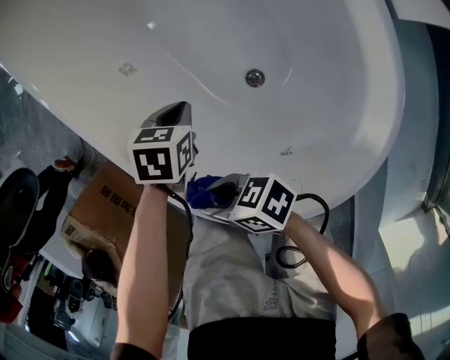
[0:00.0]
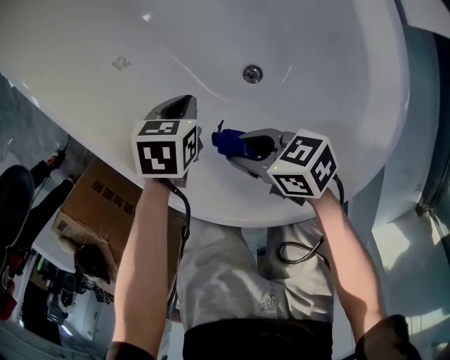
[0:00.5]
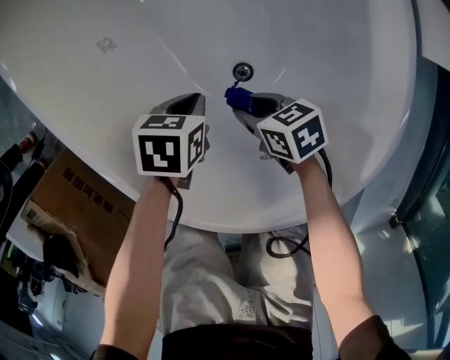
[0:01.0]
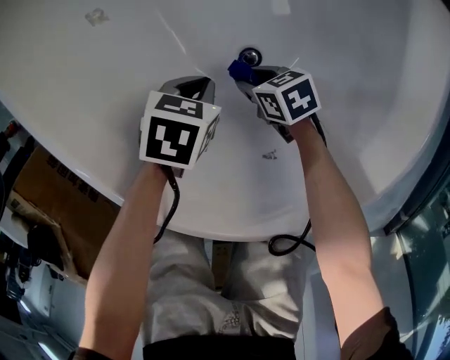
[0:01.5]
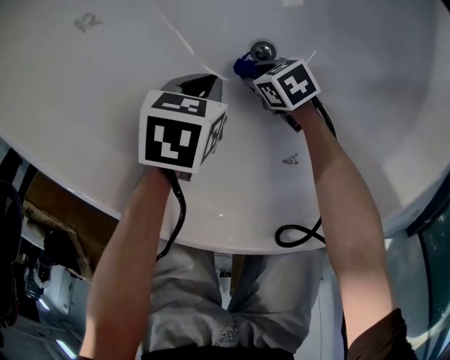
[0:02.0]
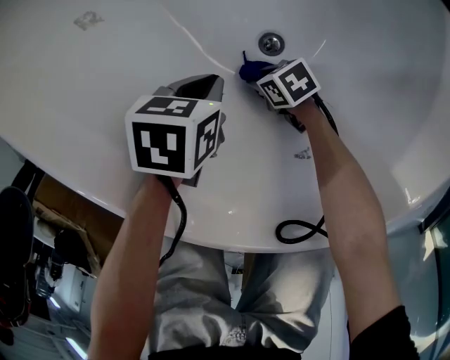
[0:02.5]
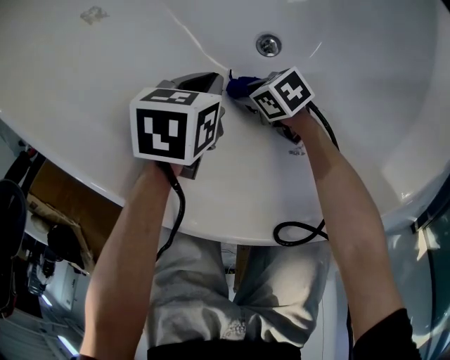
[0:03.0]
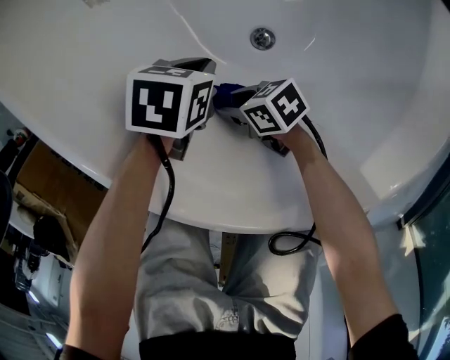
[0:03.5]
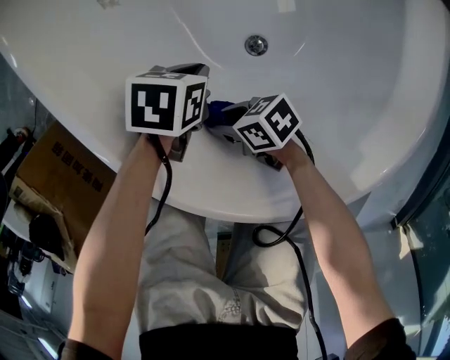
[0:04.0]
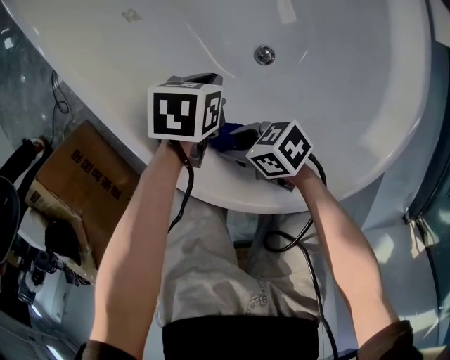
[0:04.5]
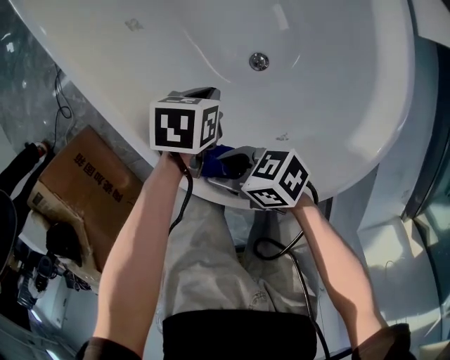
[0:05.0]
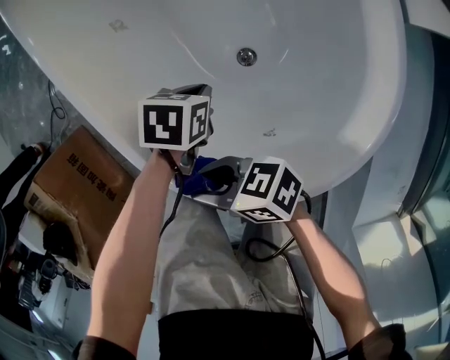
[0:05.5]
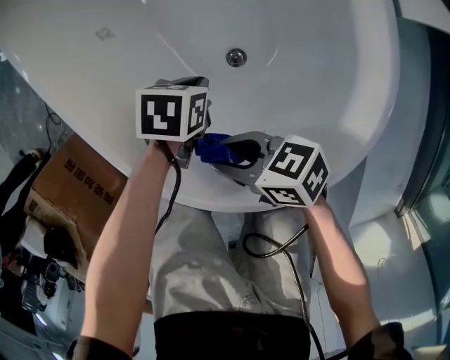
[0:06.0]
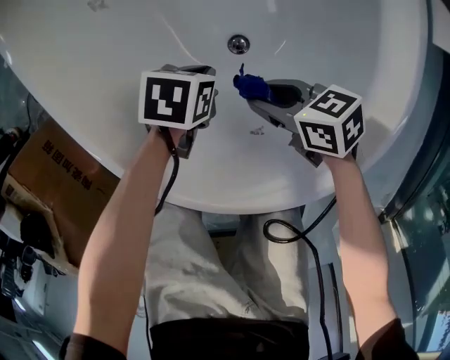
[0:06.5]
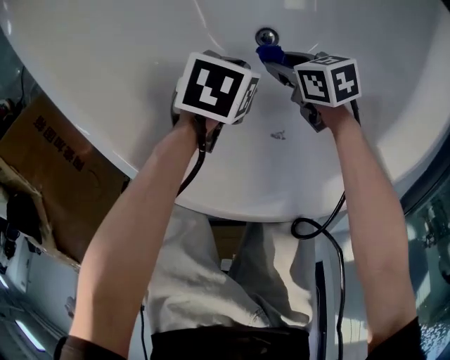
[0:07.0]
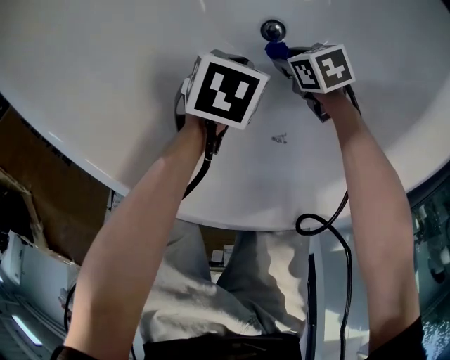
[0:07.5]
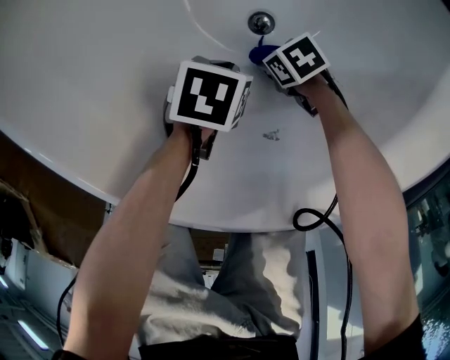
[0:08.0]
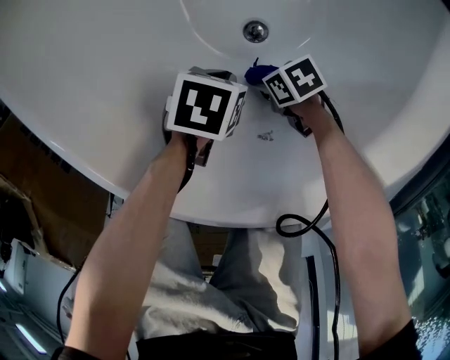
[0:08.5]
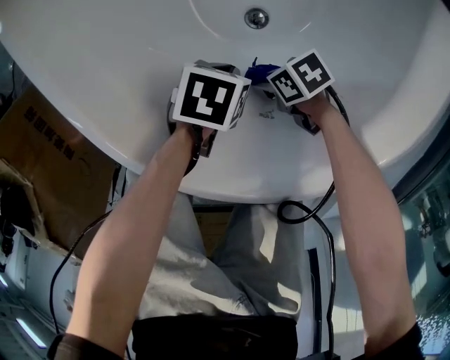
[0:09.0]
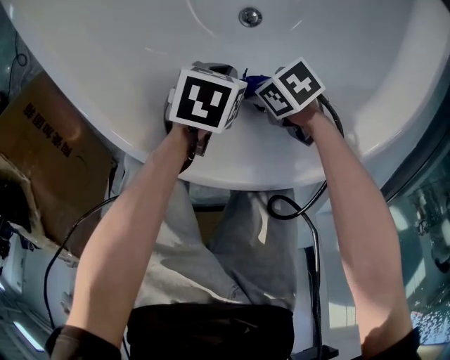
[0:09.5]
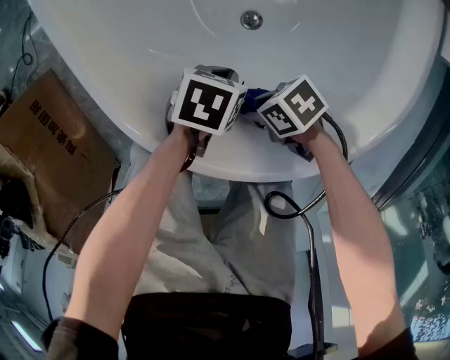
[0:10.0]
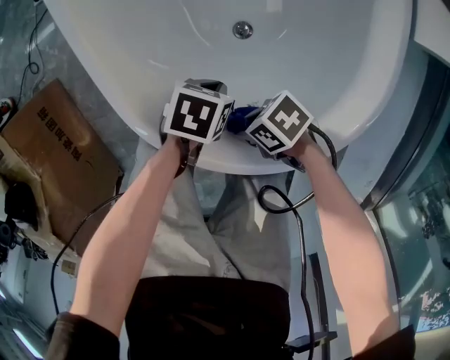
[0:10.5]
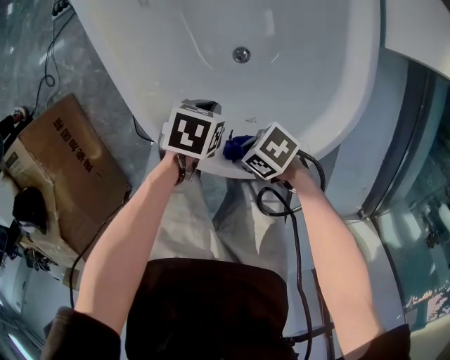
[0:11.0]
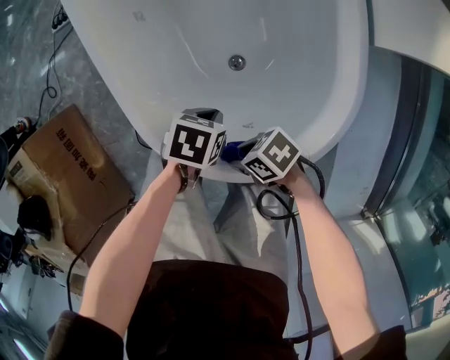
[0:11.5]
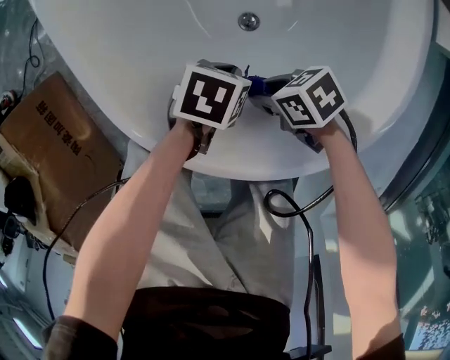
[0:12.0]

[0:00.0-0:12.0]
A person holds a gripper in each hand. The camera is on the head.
0:00.0 to 0:02.0: The left gripper heads downward, covering about 10 cm.
0:04.0 to 0:06.0: The left gripper changes place by about 5 cm.
0:06.0 to 0:08.0: The left gripper heads downward, covering approximately 10 cm.
0:08.0 to 0:10.0: The left gripper moves upward, roughly 10 cm.
0:10.0 to 0:12.0: The left gripper reaches some 10 cm upward, then returns.

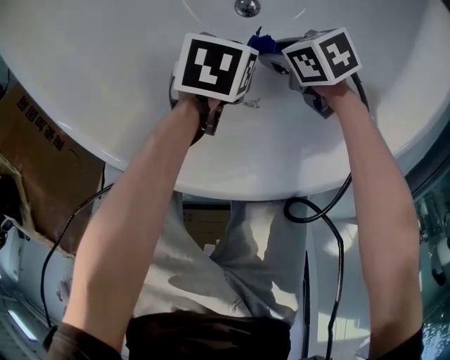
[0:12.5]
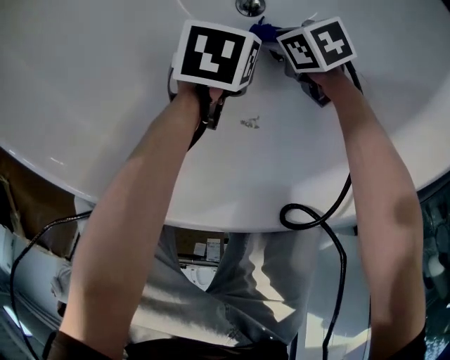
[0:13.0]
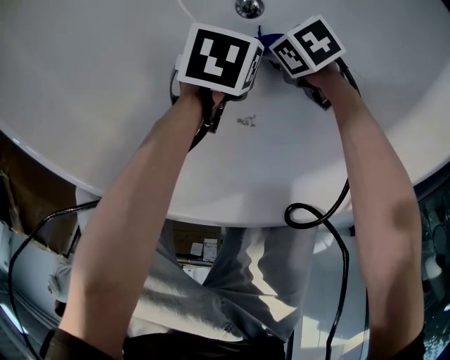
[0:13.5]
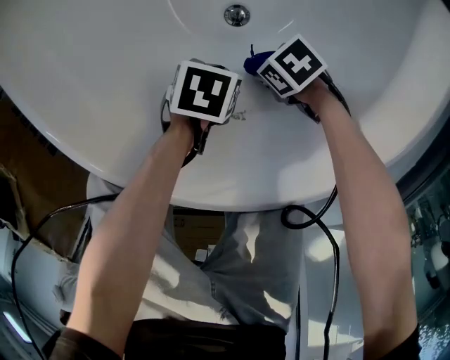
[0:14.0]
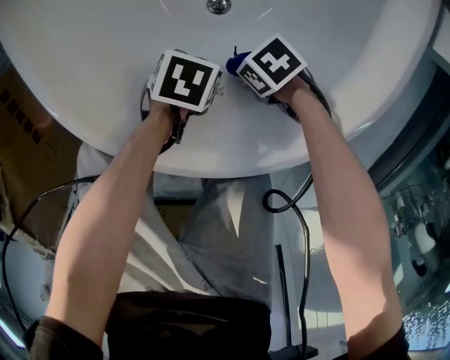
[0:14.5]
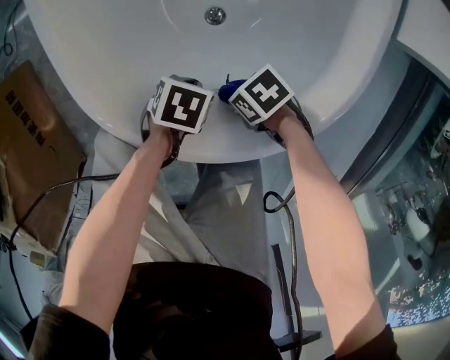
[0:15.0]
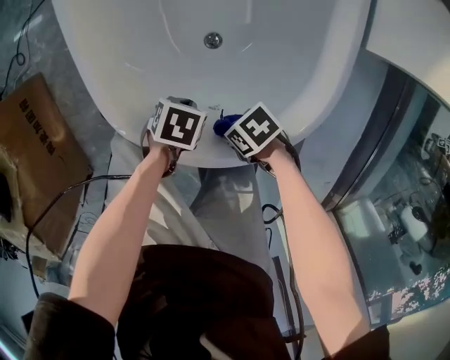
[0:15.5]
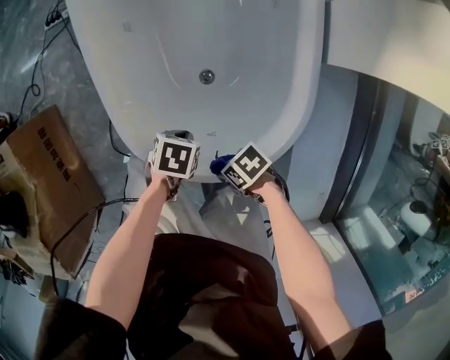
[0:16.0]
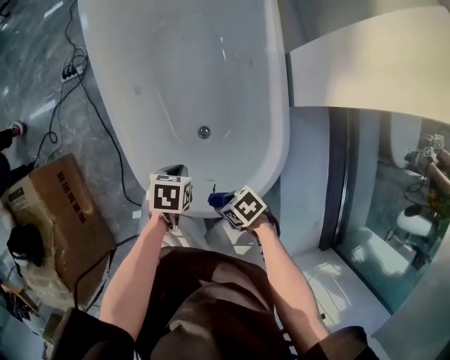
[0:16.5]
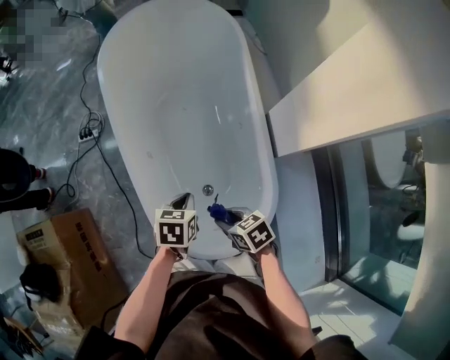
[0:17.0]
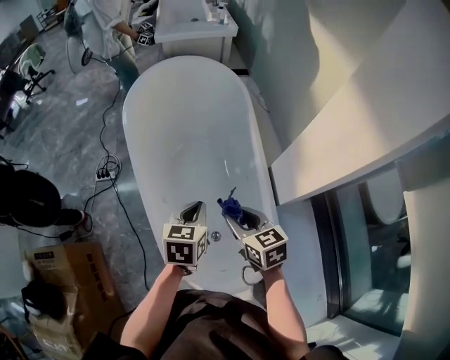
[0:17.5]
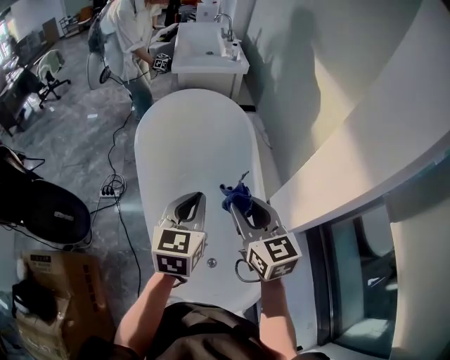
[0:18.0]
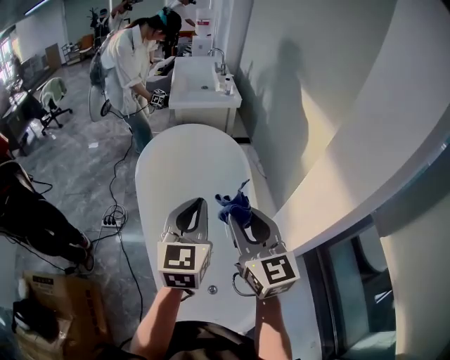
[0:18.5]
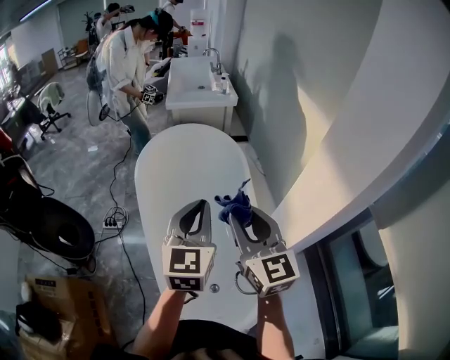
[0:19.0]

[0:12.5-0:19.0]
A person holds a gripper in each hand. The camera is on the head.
0:12.5 to 0:14.5: The left gripper moves some 10 cm downward and comes back.
0:14.5 to 0:17.0: The left gripper travels upward by about 40 cm, and swivels some 40 degrees.
0:17.0 to 0:19.0: The left gripper heads upward, covering roughly 40 cm, and points its fingers some 50 degrees further upward.

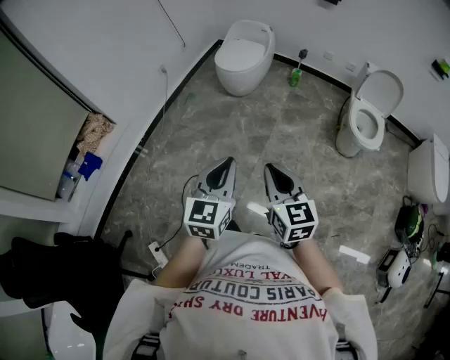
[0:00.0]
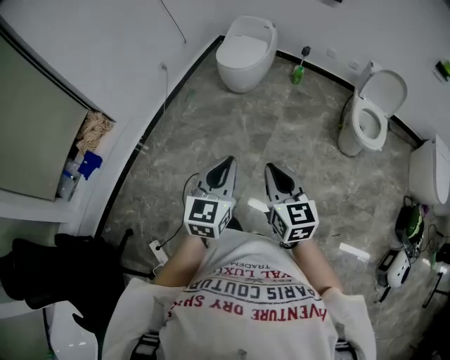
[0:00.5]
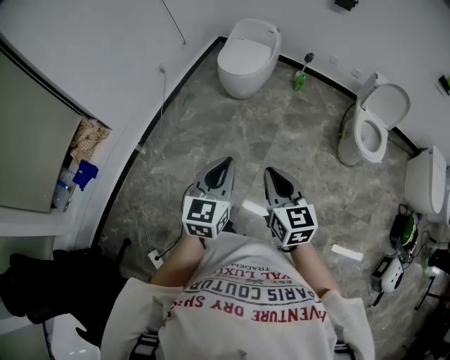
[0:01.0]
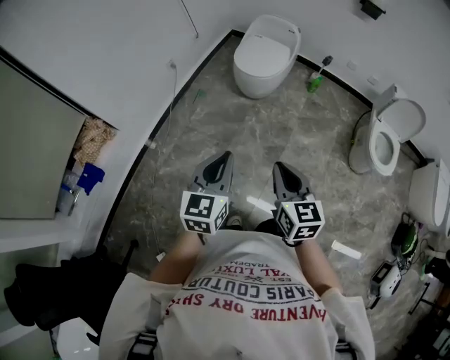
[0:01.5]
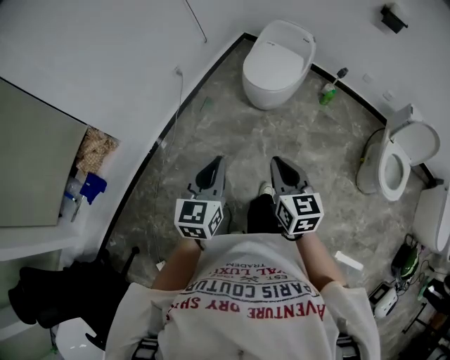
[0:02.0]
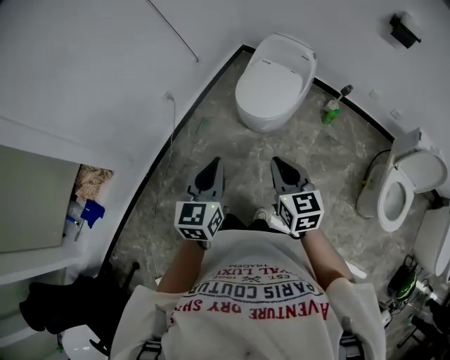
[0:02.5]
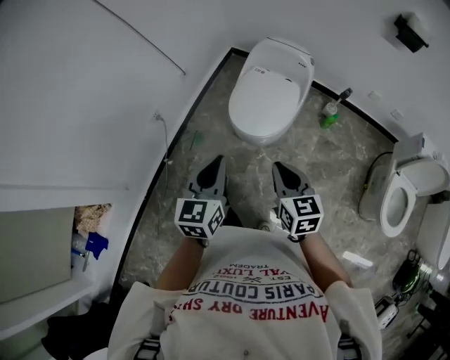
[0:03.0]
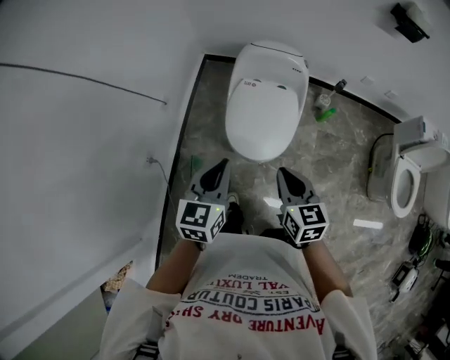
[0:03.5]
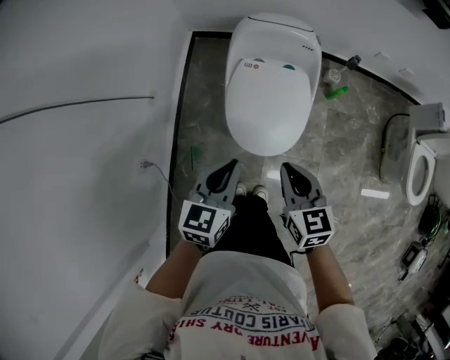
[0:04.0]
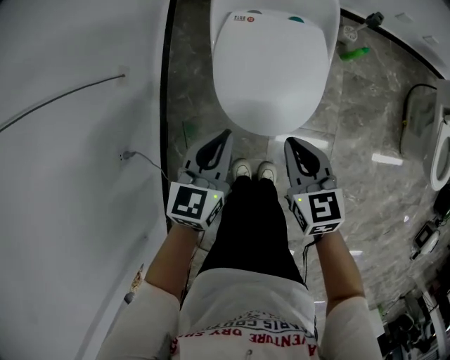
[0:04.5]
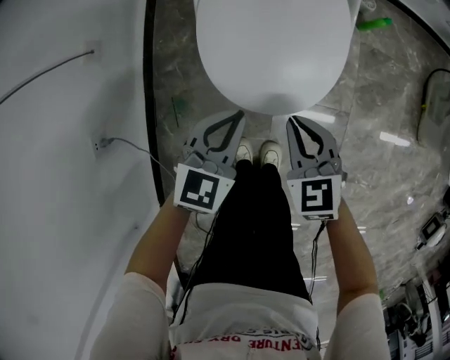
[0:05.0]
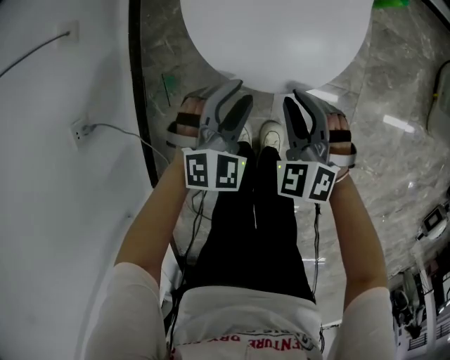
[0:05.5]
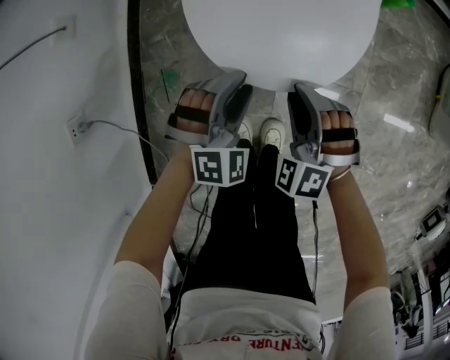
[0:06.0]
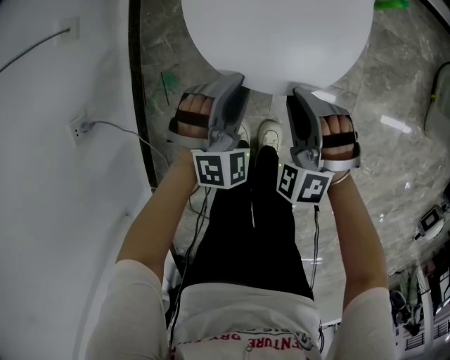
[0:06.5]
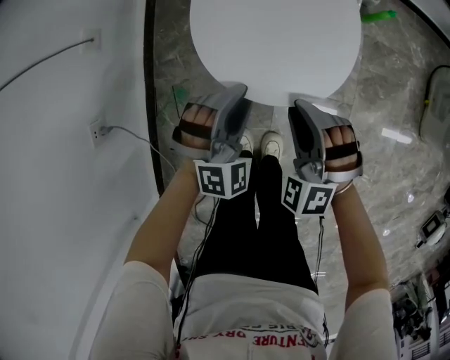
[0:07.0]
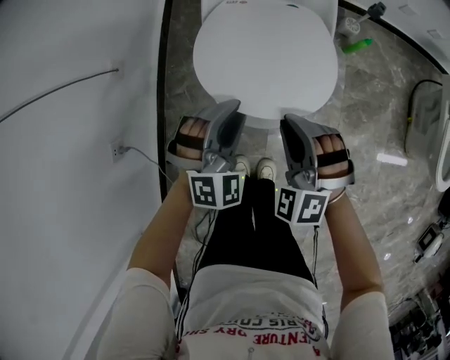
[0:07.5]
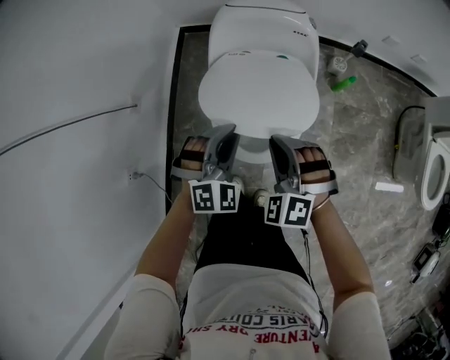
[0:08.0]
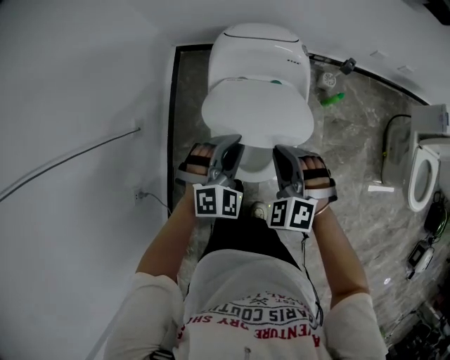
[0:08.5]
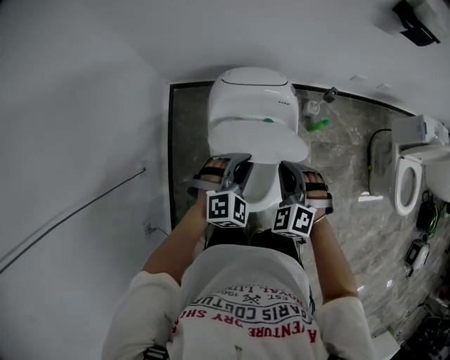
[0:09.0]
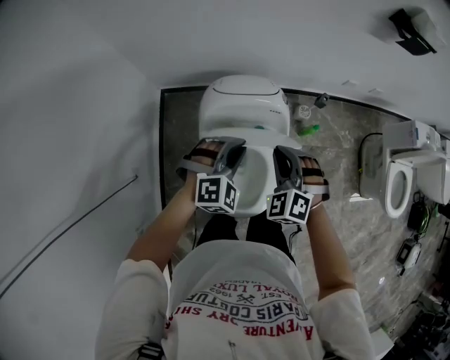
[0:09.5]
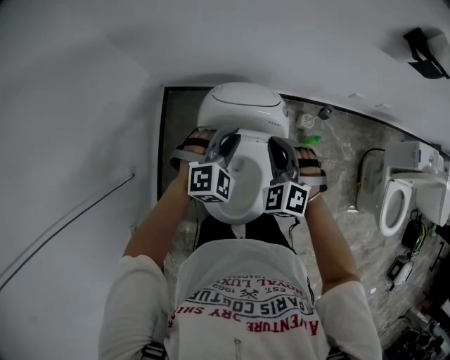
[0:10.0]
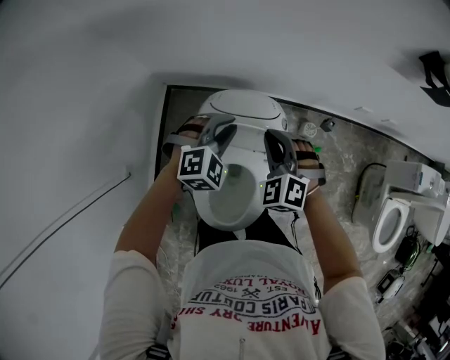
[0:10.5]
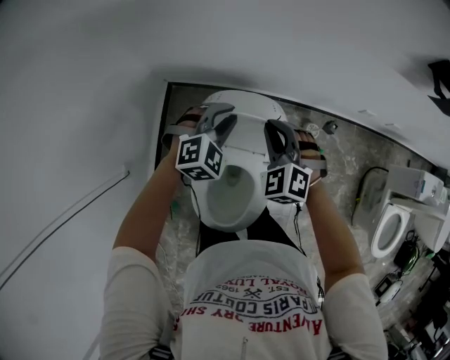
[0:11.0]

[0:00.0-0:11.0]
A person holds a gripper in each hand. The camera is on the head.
0:00.0 to 0:02.0: The pair of grippers is taken forward, some 40 cm.
0:02.0 to 0:03.5: Both grippers are carried forward, approximately 60 cm. The left gripper turns by approximately 20 degrees.
0:03.5 to 0:05.5: Both grippers travel together downward, some 50 cm. The right gripper rotates around the line of its fingers by some 50 degrees, counterclockwise from behind; the left gripper rolls clockwise, seen from behind, by about 50 degrees, and opens.
0:05.5 to 0:07.5: The two grippers go approximately 20 cm upward. The right gripper rotates roughly 20 degrees. The left gripper turns by roughly 20 degrees.
0:07.5 to 0:09.0: The two grippers go approximately 25 cm forward and upward.
0:09.0 to 0:11.0: The grippers both shift forward by some 25 cm.
